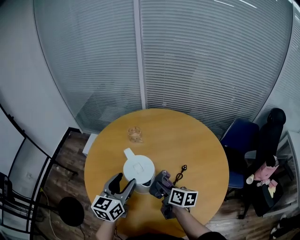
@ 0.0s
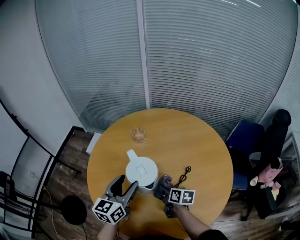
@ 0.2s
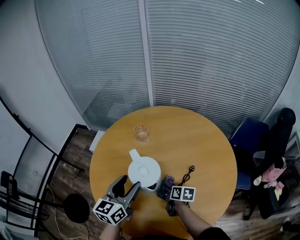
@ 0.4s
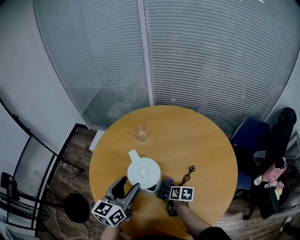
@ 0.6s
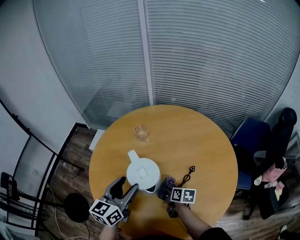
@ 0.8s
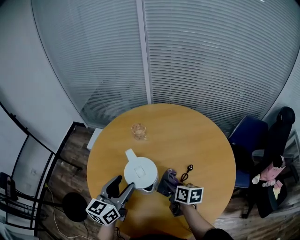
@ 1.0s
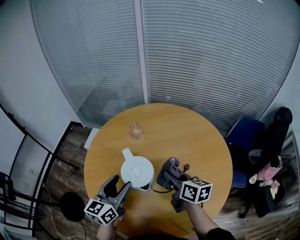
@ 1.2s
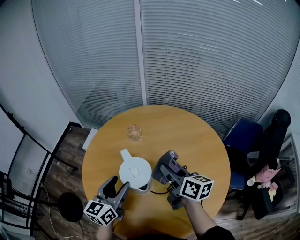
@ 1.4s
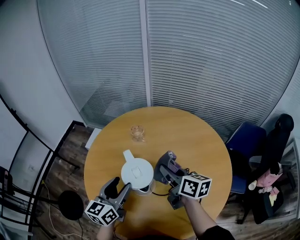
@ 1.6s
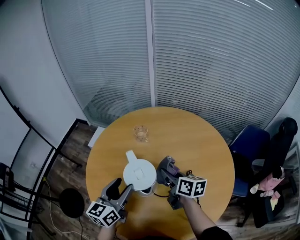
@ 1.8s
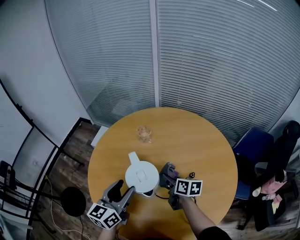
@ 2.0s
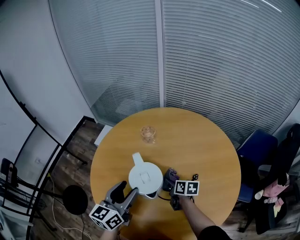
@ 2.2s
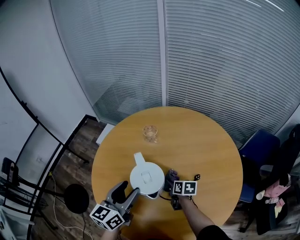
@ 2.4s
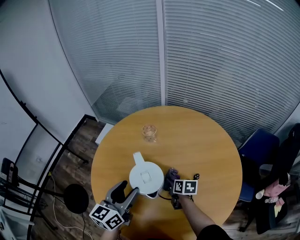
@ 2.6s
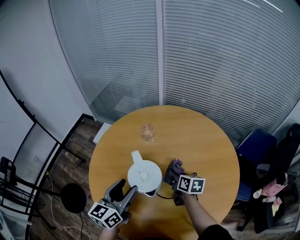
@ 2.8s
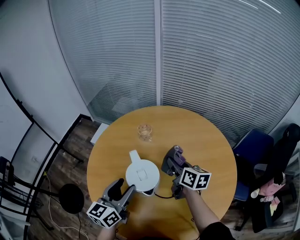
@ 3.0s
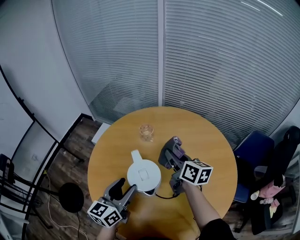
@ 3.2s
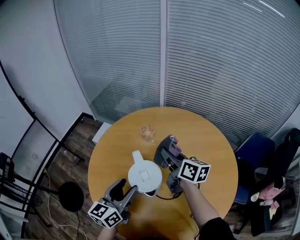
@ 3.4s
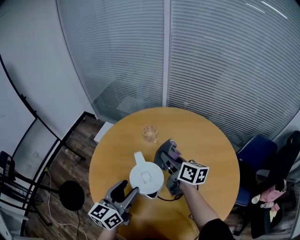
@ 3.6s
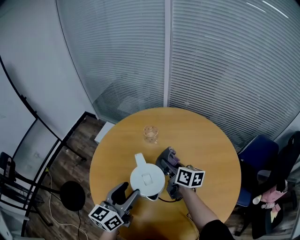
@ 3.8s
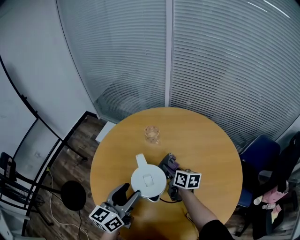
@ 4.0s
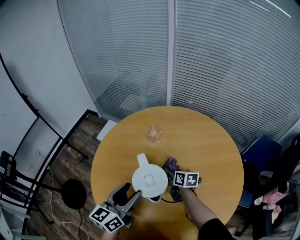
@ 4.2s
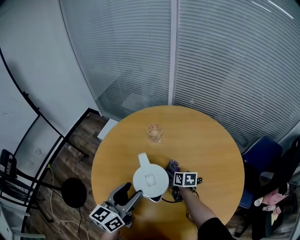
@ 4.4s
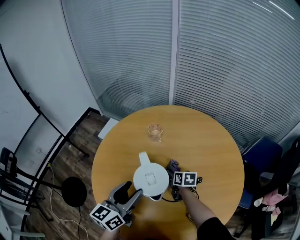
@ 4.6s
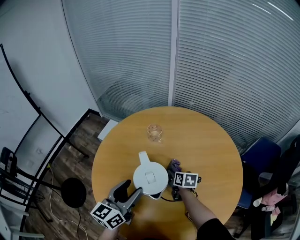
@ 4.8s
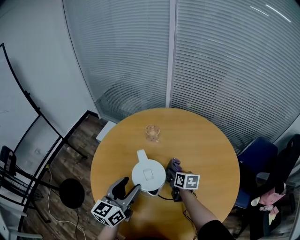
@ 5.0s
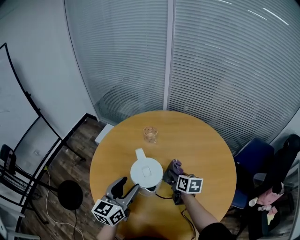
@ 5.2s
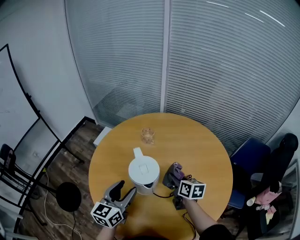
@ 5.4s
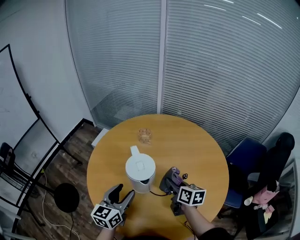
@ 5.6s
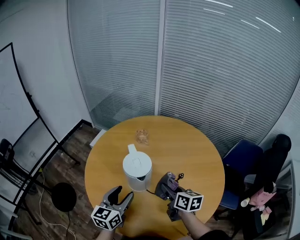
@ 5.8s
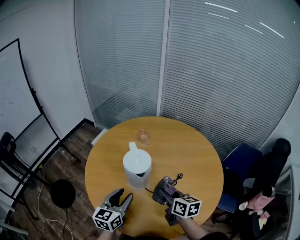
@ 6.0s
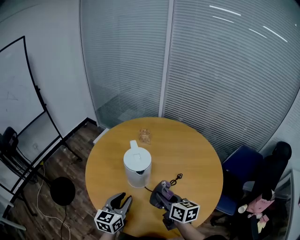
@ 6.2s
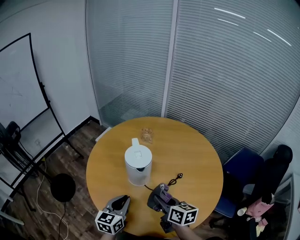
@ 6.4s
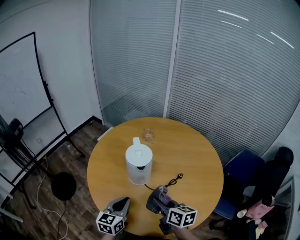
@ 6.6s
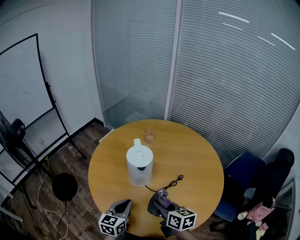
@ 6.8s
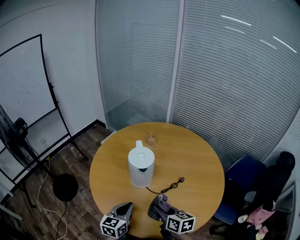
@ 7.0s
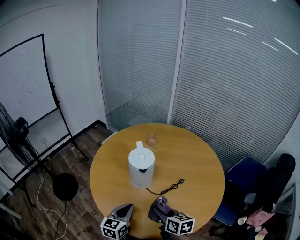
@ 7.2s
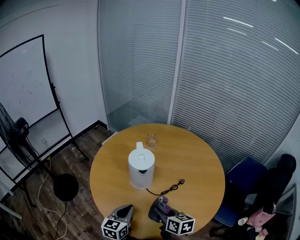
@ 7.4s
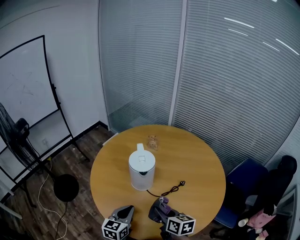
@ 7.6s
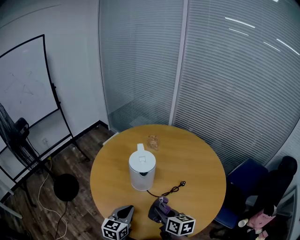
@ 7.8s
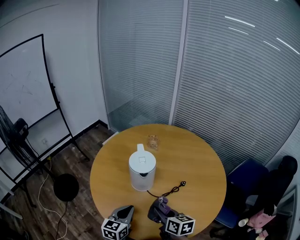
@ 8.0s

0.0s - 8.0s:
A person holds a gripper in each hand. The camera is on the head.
0.0s - 1.6s: The right gripper moves upward and forward, approximately 15 cm.
1.6s - 3.2s: The right gripper heads forward, covering approximately 10 cm, and travels downward and back again, approximately 25 cm each way.
3.2s - 4.8s: The right gripper heads downward, covering approximately 20 cm, and changes its angle by about 30 degrees.
4.8s - 6.4s: The left gripper travels backward by approximately 15 cm, and closes. Meanwhile the right gripper goes approximately 30 cm backward and upward, and changes its angle by approximately 20 degrees.
6.4s - 8.0s: The grippers make only small movements.

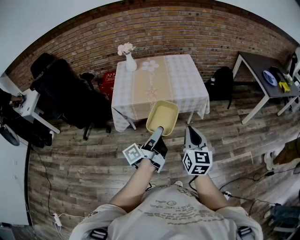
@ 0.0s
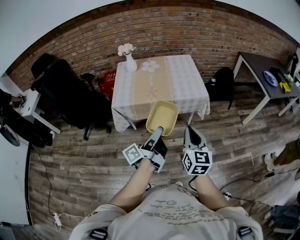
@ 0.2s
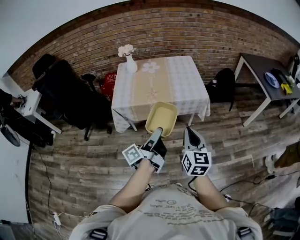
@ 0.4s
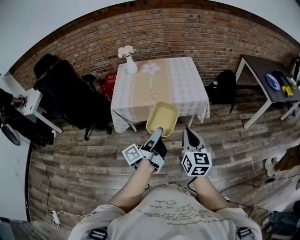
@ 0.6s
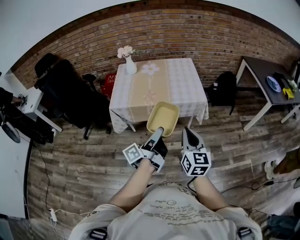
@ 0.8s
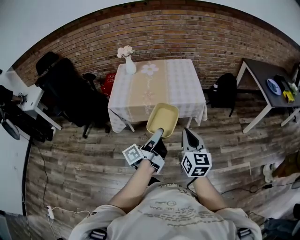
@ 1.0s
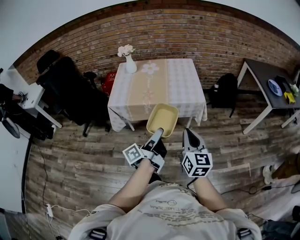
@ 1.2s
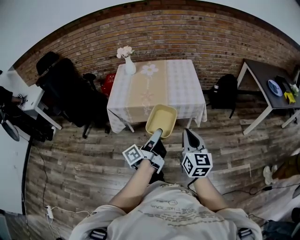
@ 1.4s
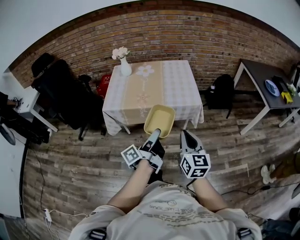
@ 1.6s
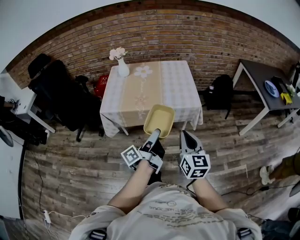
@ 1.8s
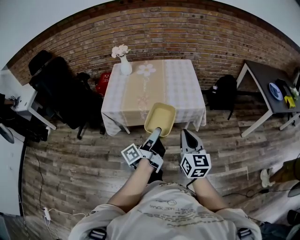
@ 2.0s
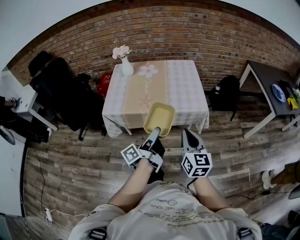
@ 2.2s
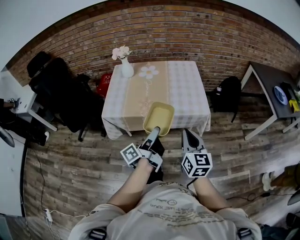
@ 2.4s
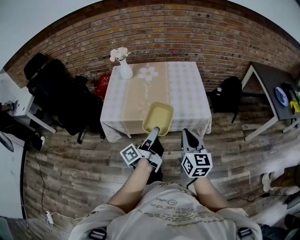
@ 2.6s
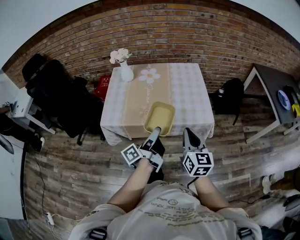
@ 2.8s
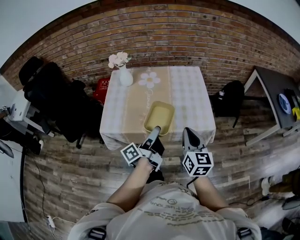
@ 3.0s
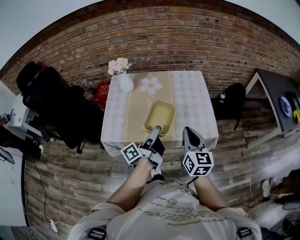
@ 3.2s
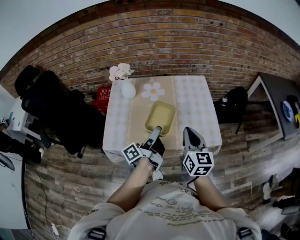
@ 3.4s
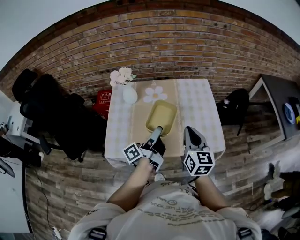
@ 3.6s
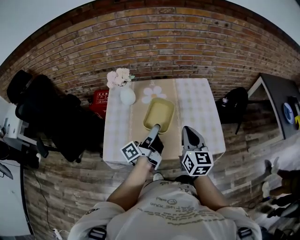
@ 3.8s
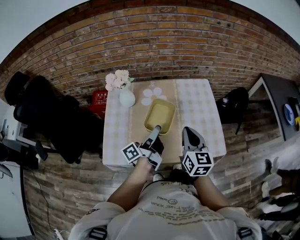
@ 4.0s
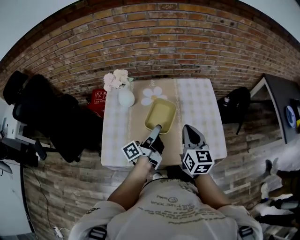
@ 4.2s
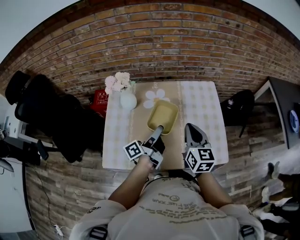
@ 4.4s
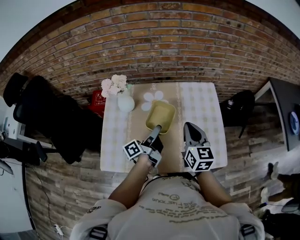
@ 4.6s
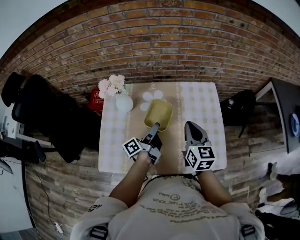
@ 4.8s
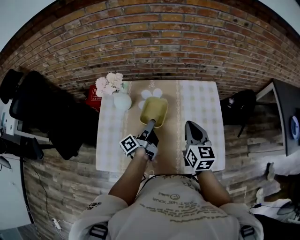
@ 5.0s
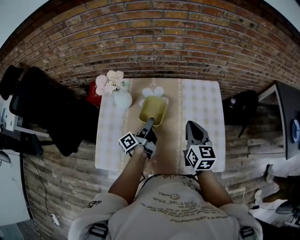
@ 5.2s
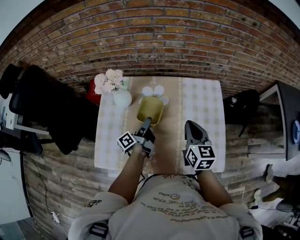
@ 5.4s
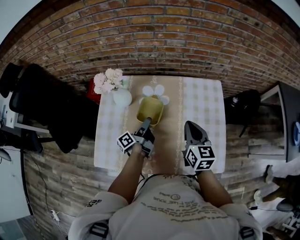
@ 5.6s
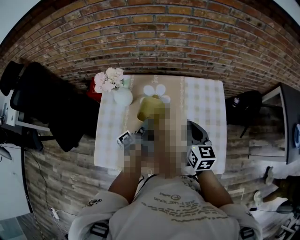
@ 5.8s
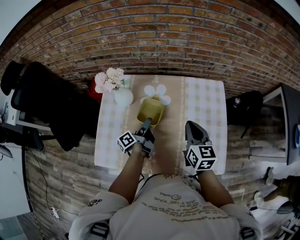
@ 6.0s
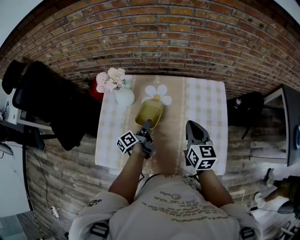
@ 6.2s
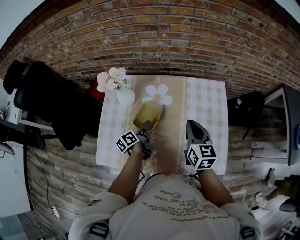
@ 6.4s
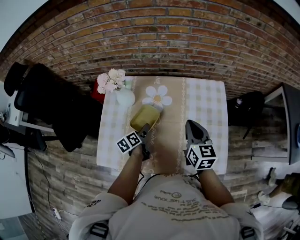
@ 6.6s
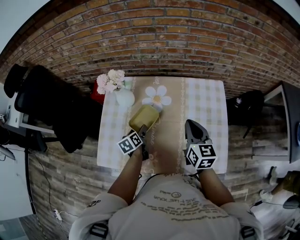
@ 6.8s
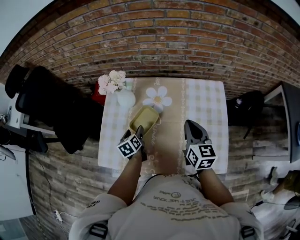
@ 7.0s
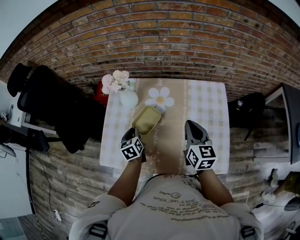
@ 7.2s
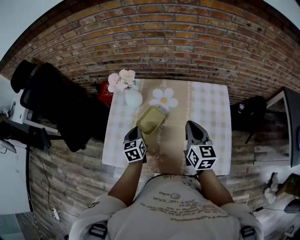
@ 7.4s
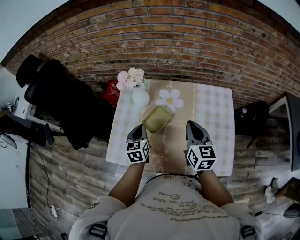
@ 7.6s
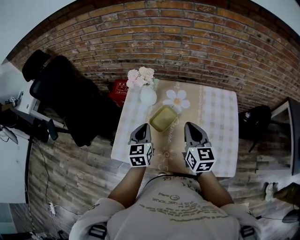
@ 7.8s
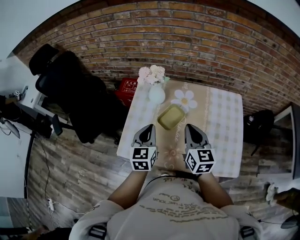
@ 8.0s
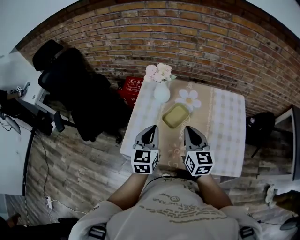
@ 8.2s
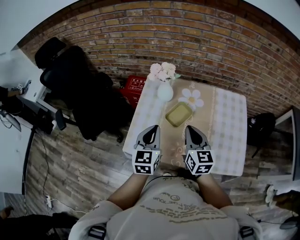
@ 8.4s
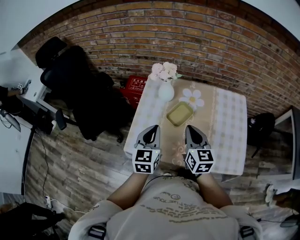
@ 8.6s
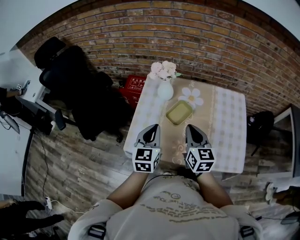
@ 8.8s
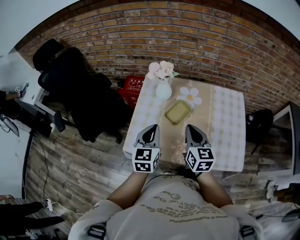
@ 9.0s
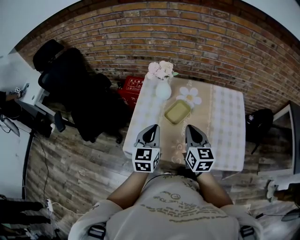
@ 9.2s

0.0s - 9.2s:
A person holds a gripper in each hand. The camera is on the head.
0.0s - 1.6s: The two grippers go about 10 cm to the right and forward.
1.6s - 3.0s: The grippers both shift forward by approximately 25 cm.
3.0s - 4.6s: The grippers both shift forward by about 30 cm.
4.6s - 6.2s: The right gripper travels forward and downward by some 10 cm. Meanwhile the left gripper is displaced downward, to the left and forward by some 15 cm, and turns by roughly 30 degrees.
6.2s - 7.6s: The right gripper moves to the left, about 5 cm, while the left gripper shifts approximately 15 cm upward and to the left, rolls clockwise, seen from behind, by approximately 60 degrees, and closes up.
7.6s - 9.2s: The right gripper is displaced to the left and backward by roughly 15 cm. The left gripper goes some 15 cm backward, upward and to the left.

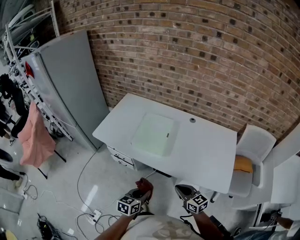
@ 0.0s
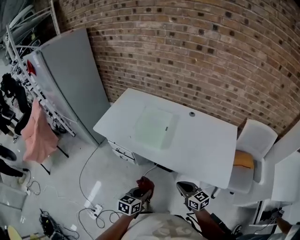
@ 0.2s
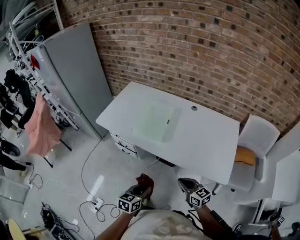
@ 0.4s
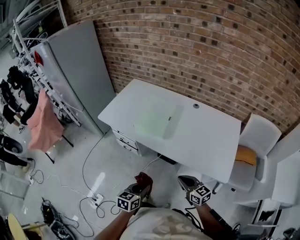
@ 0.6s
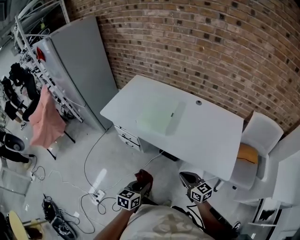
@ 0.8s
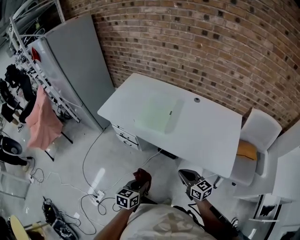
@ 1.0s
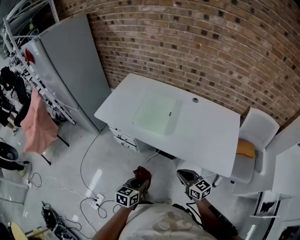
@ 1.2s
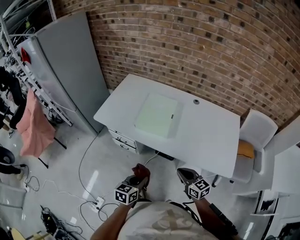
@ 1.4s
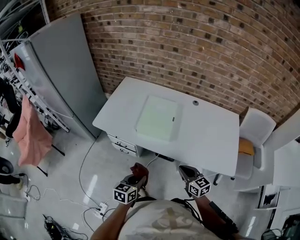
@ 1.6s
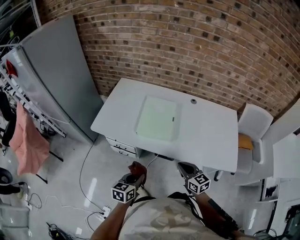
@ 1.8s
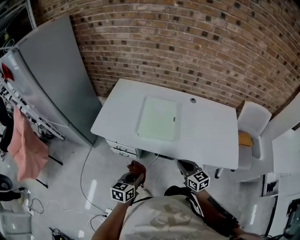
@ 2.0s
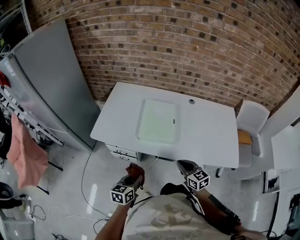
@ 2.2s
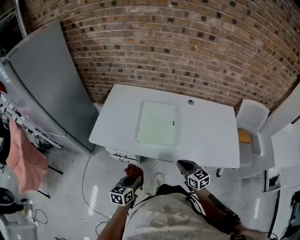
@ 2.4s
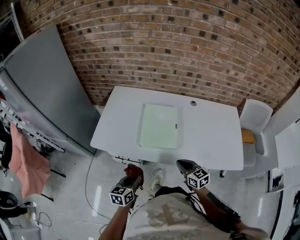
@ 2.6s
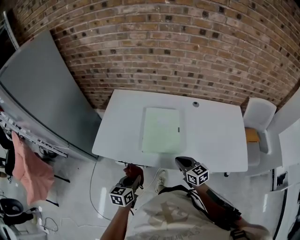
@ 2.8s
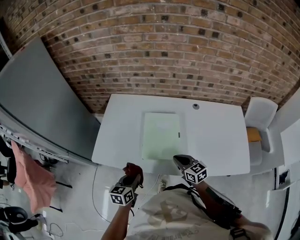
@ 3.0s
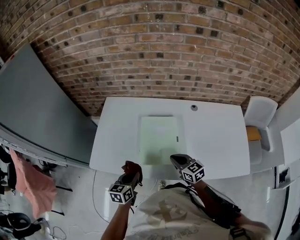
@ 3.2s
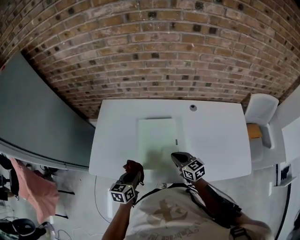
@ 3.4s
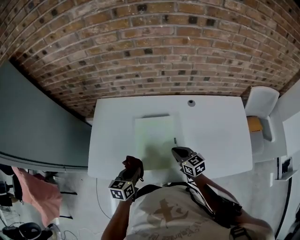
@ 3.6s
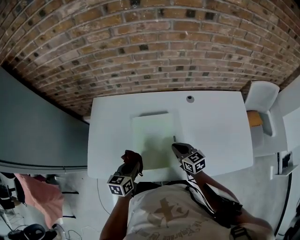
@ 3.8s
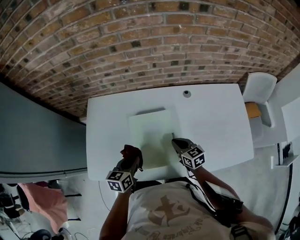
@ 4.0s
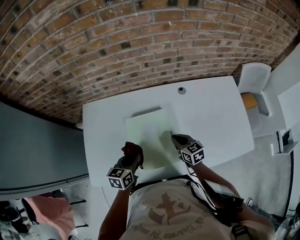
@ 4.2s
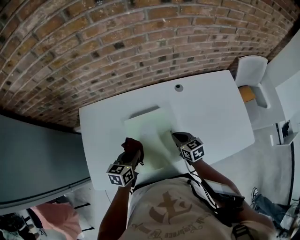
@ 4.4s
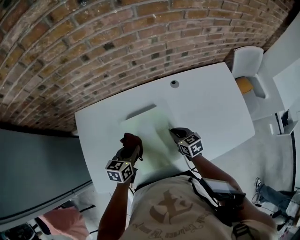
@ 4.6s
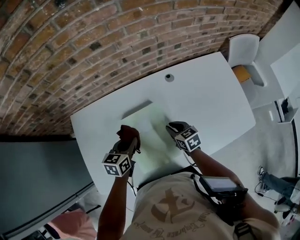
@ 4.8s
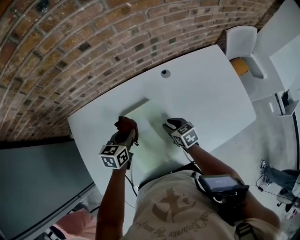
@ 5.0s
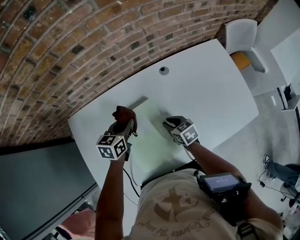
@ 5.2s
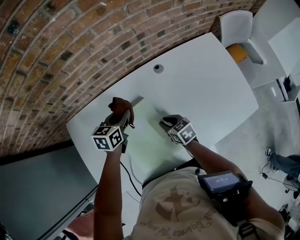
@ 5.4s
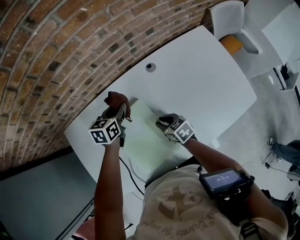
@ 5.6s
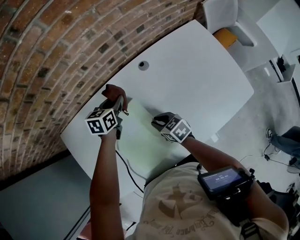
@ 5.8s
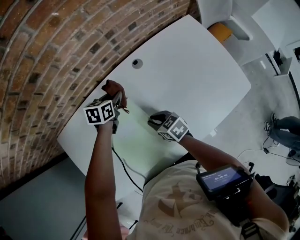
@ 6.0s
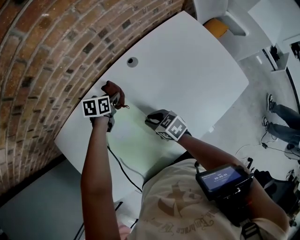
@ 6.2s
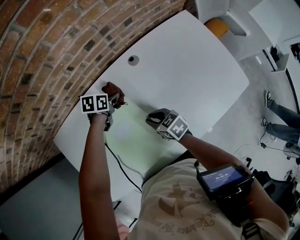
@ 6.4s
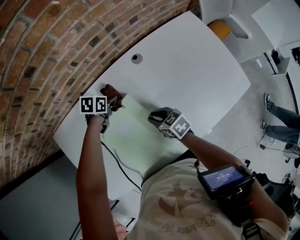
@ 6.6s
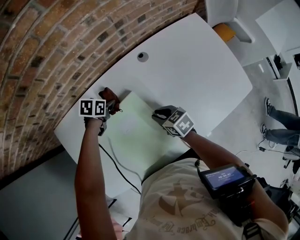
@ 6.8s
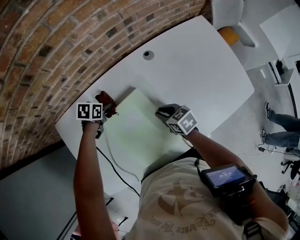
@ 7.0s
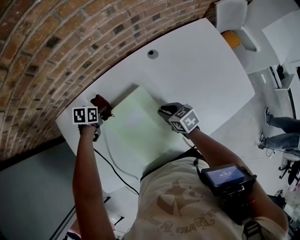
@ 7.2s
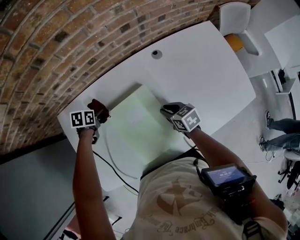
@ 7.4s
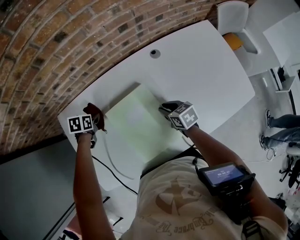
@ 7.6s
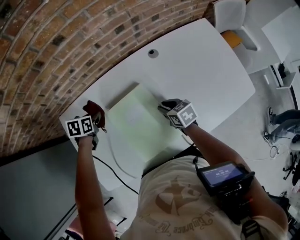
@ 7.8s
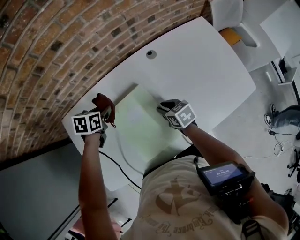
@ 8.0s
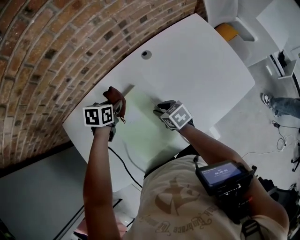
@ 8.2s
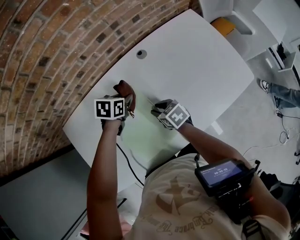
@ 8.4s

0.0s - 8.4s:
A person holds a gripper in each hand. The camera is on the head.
0.0s - 1.4s: The left gripper goes backward and returns, roughly 10 cm each way.
1.4s - 2.8s: Both grippers move forward and to the left, about 25 cm.
2.8s - 4.2s: Both grippers move forward, some 25 cm. The right gripper turns by about 20 degrees.
4.2s - 5.6s: The right gripper is displaced downward by some 5 cm, and opens; the left gripper is displaced forward by some 25 cm.
5.6s - 7.0s: The left gripper travels downward by roughly 10 cm, and changes its angle by roughly 30 degrees.
7.0s - 8.4s: The left gripper travels to the right and upward by roughly 15 cm.
